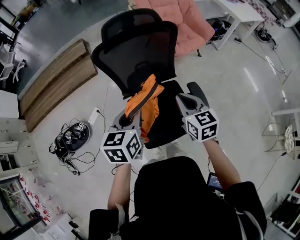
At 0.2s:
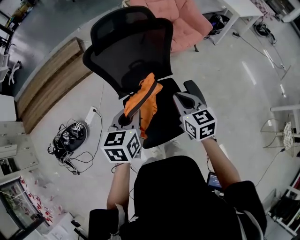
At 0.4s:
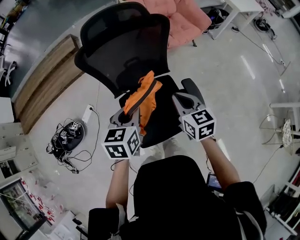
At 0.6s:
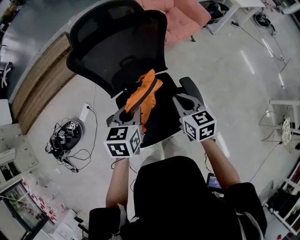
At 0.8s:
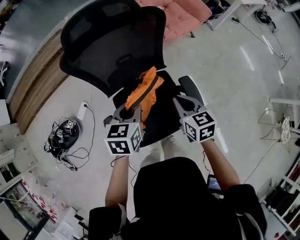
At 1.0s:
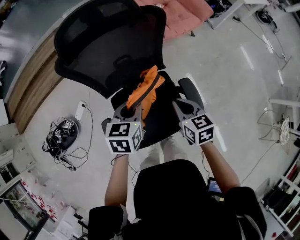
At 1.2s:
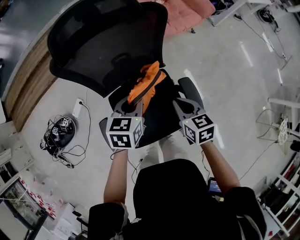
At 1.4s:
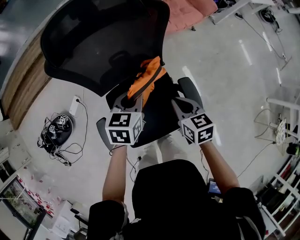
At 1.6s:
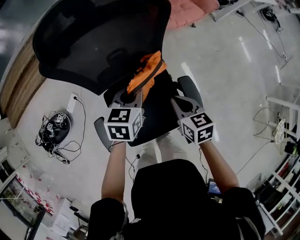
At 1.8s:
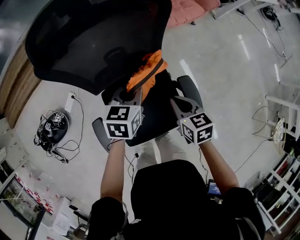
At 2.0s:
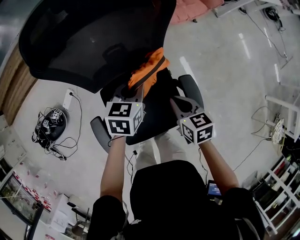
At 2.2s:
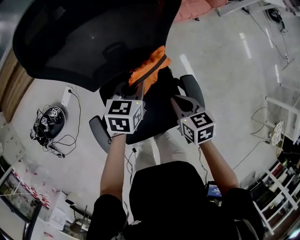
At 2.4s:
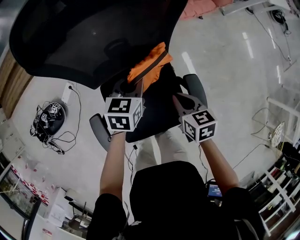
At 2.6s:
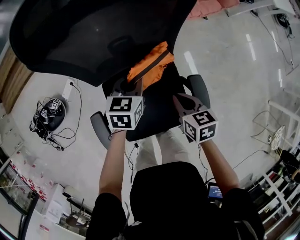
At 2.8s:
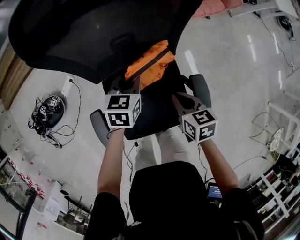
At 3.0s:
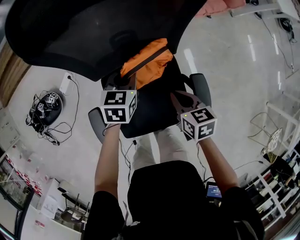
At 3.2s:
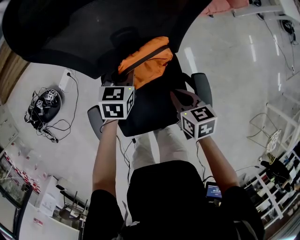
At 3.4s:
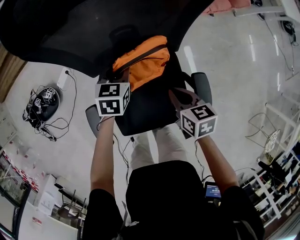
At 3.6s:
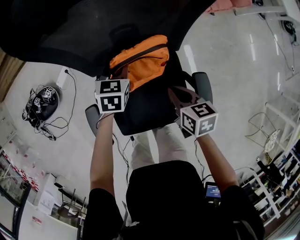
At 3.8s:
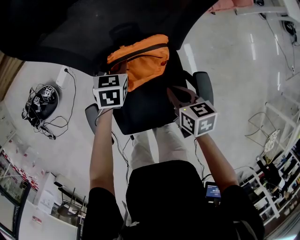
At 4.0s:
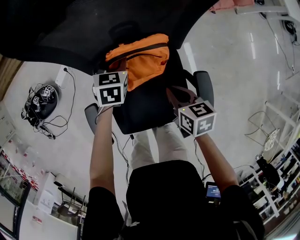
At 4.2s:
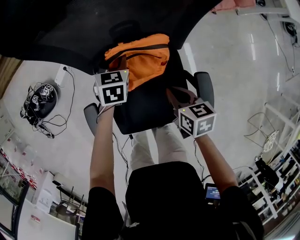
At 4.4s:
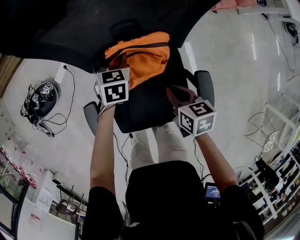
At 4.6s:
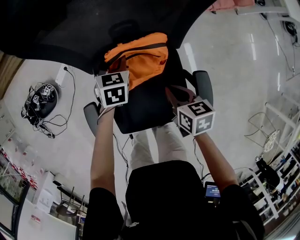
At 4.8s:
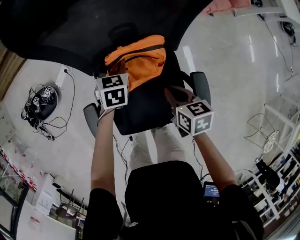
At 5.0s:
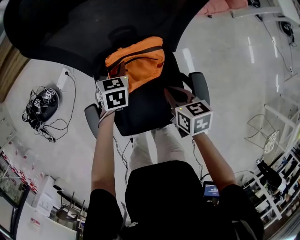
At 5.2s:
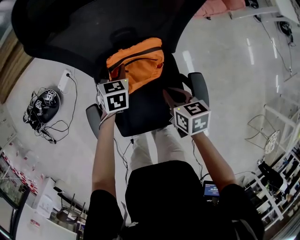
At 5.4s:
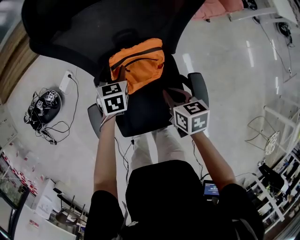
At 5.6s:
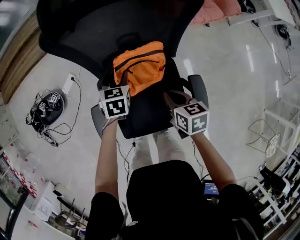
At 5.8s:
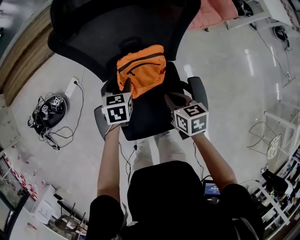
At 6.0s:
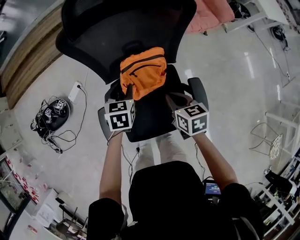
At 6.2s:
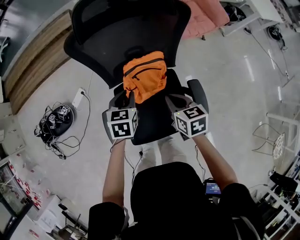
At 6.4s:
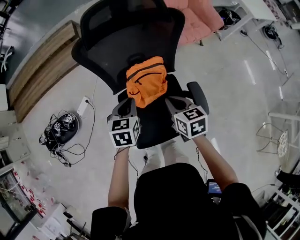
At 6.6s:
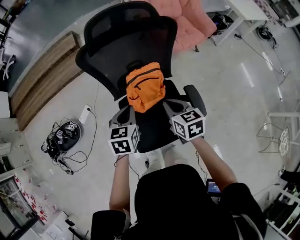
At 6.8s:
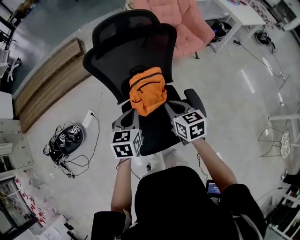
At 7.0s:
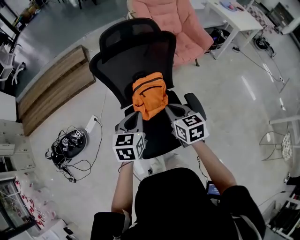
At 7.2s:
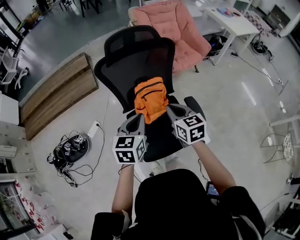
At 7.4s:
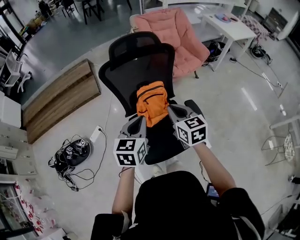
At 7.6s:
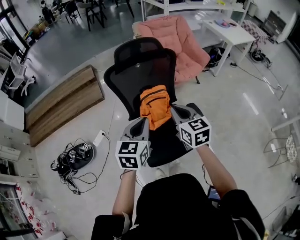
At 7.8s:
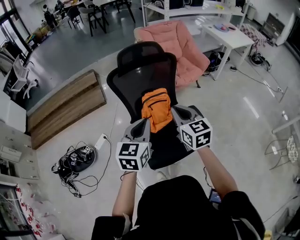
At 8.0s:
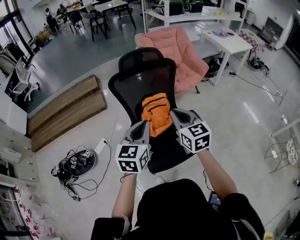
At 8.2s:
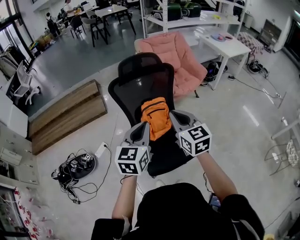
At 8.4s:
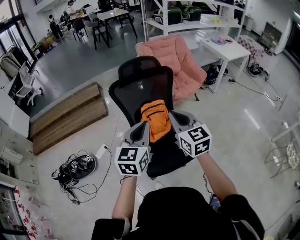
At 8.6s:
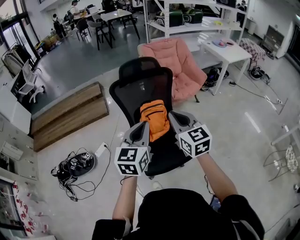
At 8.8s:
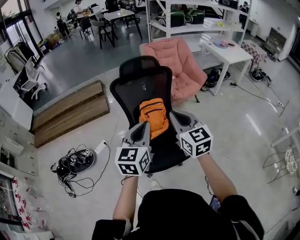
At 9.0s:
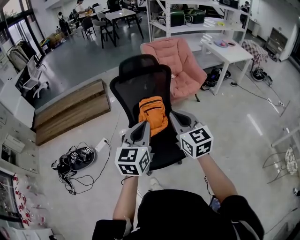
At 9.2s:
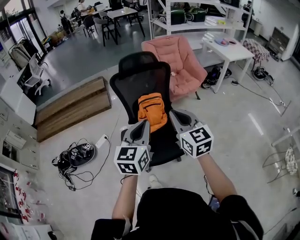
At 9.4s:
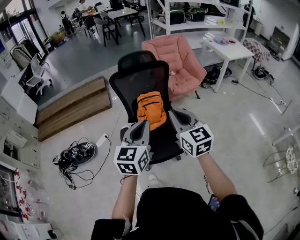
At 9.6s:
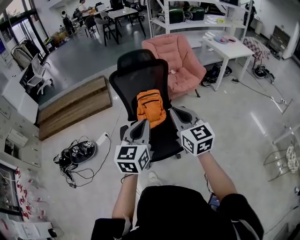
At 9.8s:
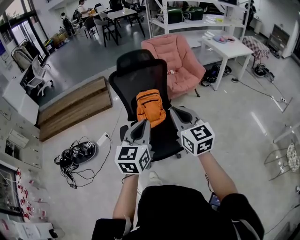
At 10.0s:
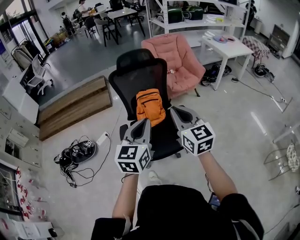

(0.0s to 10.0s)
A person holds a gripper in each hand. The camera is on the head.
0.0s - 1.4s: The left gripper shifts some 30 cm forward, downward and to the right. The right gripper heads downward, forward and to the right, covering about 20 cm, and rotates about 20 degrees.
1.4s - 2.8s: The left gripper shifts some 15 cm downward and forward; the right gripper travels downward by about 10 cm.
2.8s - 4.2s: The left gripper is displaced downward, to the left and forward by roughly 15 cm, and opens its fingers, while the right gripper shifts by approximately 5 cm.
4.2s - 5.8s: The left gripper goes some 10 cm upward and backward. The right gripper travels upward by about 5 cm.
5.8s - 7.2s: Both grippers move upward and backward, approximately 30 cm. The right gripper changes its angle by roughly 30 degrees, while the left gripper rotates roughly 30 degrees, and closes.
7.2s - 8.6s: Both grippers travel together upward and backward, some 20 cm. The right gripper changes its angle by approximately 20 degrees.
8.6s - 10.0s: The grippers both shift backward and to the right by approximately 15 cm.

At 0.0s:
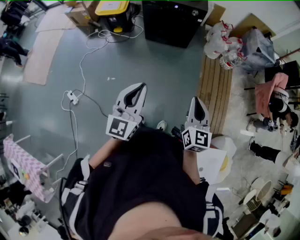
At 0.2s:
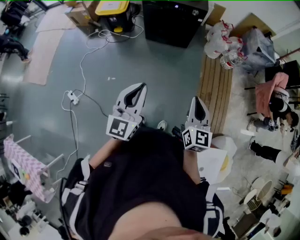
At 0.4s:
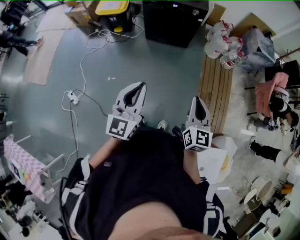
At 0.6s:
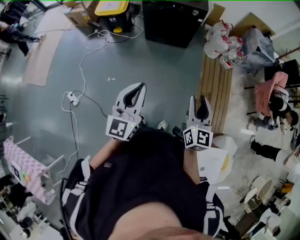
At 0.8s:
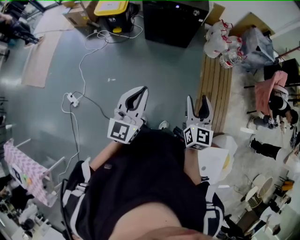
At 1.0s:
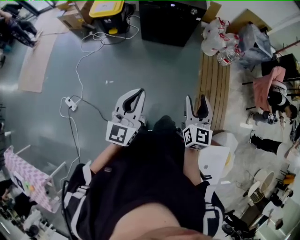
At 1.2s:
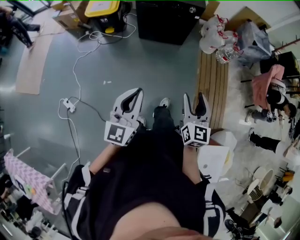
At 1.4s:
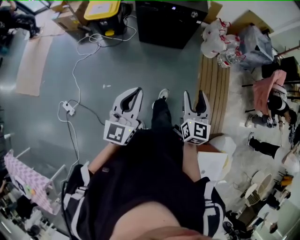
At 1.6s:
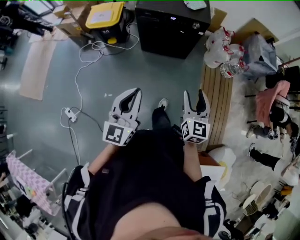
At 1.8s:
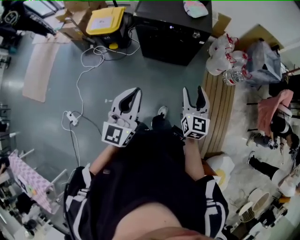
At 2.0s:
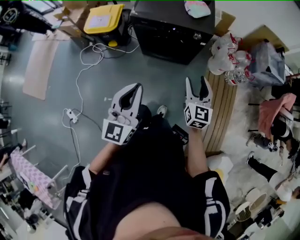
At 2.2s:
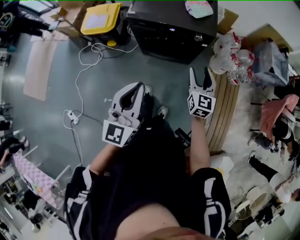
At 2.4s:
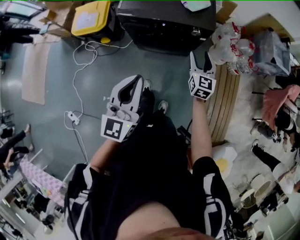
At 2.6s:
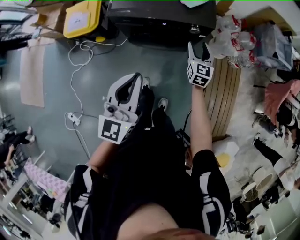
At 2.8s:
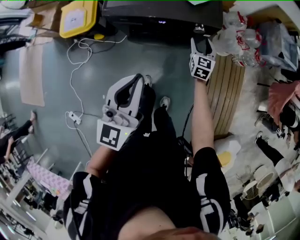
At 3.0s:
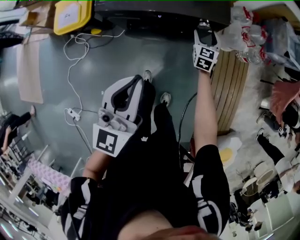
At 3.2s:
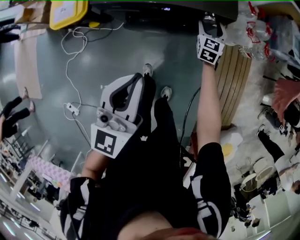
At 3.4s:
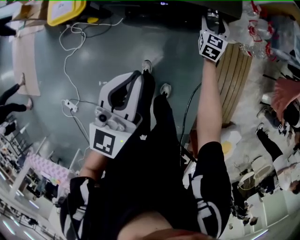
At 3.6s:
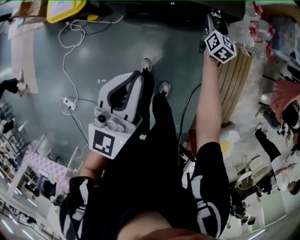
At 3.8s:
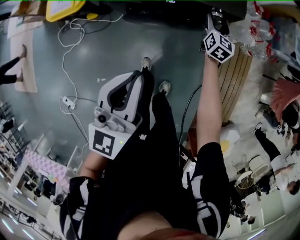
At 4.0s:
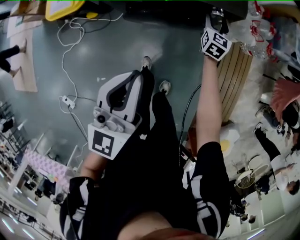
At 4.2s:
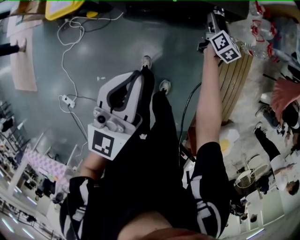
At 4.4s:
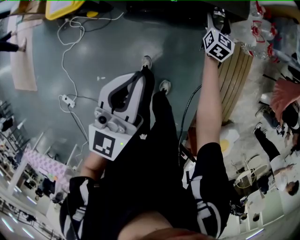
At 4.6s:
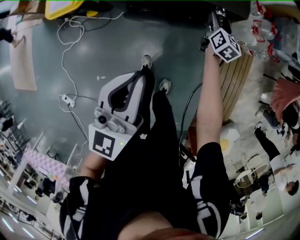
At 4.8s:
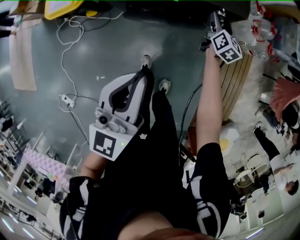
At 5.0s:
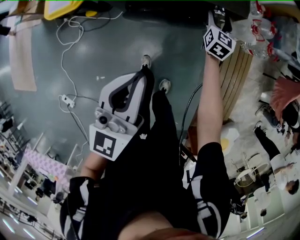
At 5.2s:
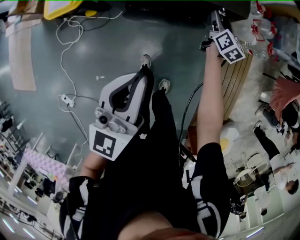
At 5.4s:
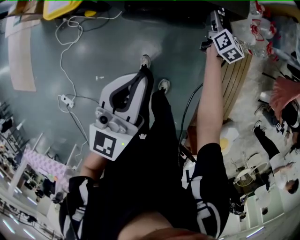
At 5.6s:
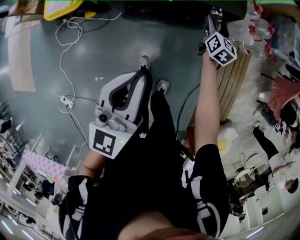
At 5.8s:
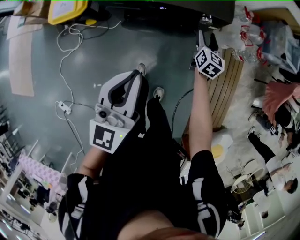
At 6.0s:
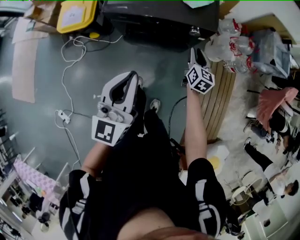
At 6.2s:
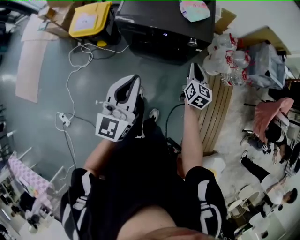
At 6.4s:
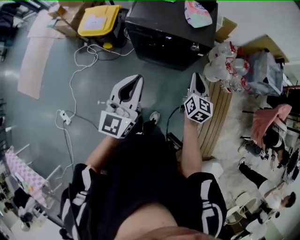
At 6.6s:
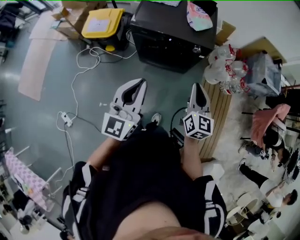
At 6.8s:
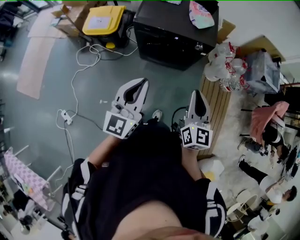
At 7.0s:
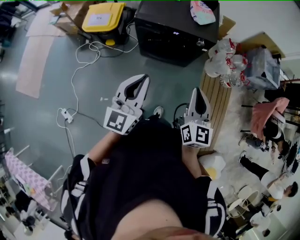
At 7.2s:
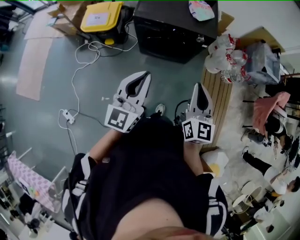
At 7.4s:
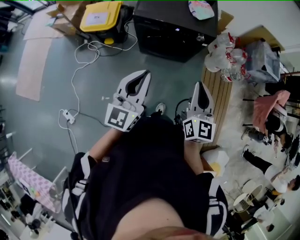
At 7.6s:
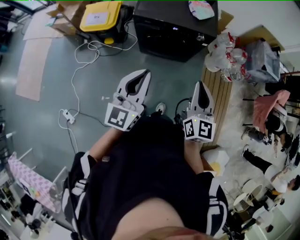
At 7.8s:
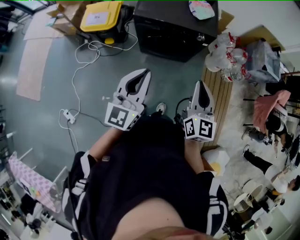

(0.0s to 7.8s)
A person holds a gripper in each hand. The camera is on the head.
0.0s - 1.6s: The two grippers go approximately 25 cm forward. The right gripper opens up.
1.6s - 3.2s: The pair of grippers is taken forward, roughly 60 cm. The right gripper moves downward, roughly 40 cm.
3.2s - 4.6s: The right gripper changes its angle by some 30 degrees.
4.6s - 6.2s: The left gripper goes roughly 20 cm upward and backward, while the right gripper shifts some 35 cm upward and backward, and closes its fingers.
6.2s - 7.8s: The left gripper is displaced backward, to the left and upward by approximately 15 cm, while the right gripper heads backward, upward and to the left, covering roughly 35 cm.

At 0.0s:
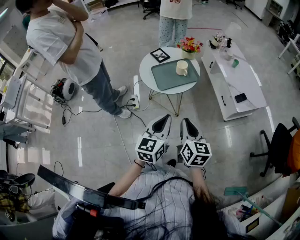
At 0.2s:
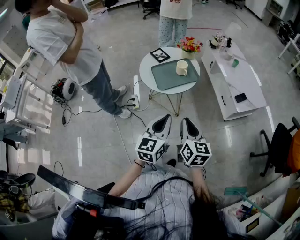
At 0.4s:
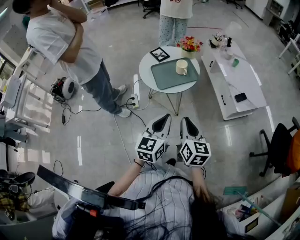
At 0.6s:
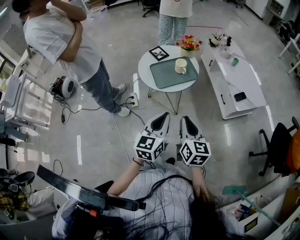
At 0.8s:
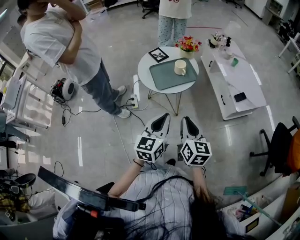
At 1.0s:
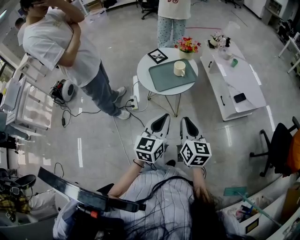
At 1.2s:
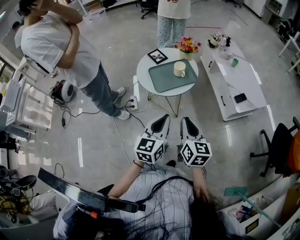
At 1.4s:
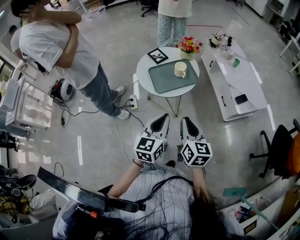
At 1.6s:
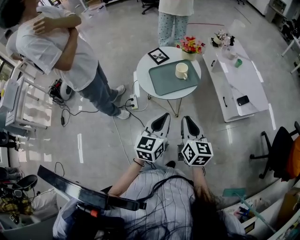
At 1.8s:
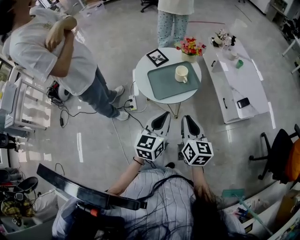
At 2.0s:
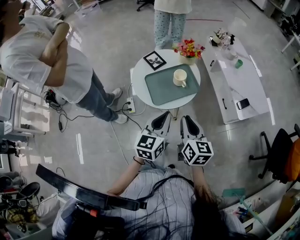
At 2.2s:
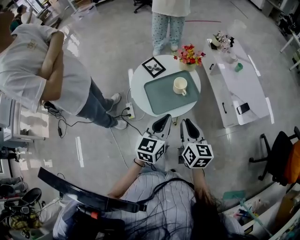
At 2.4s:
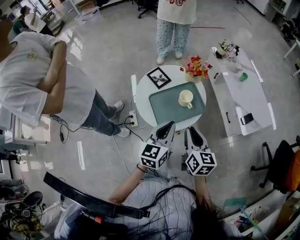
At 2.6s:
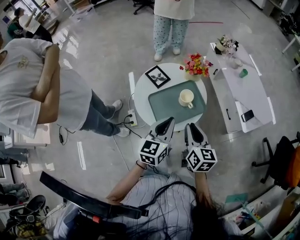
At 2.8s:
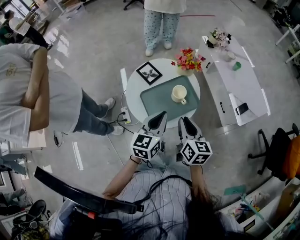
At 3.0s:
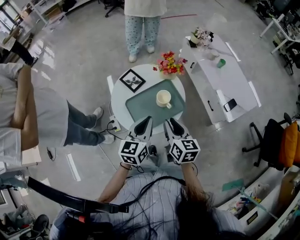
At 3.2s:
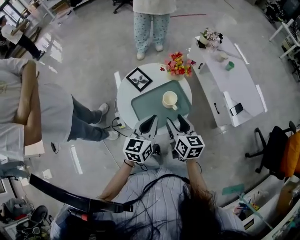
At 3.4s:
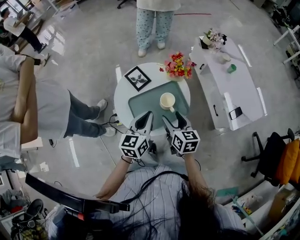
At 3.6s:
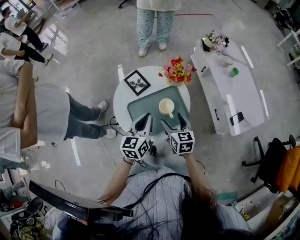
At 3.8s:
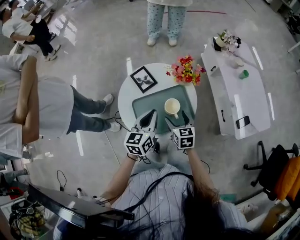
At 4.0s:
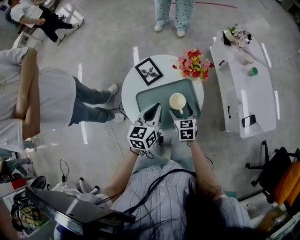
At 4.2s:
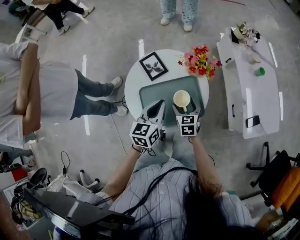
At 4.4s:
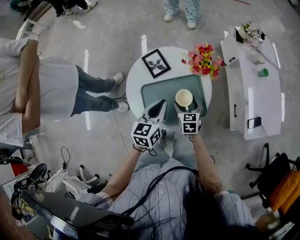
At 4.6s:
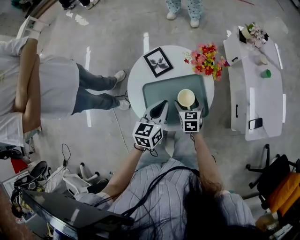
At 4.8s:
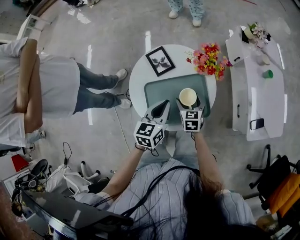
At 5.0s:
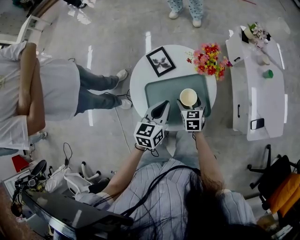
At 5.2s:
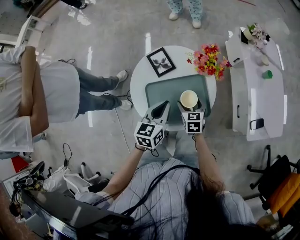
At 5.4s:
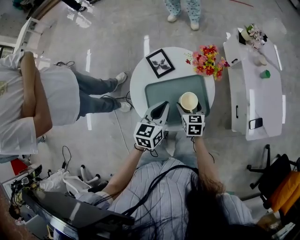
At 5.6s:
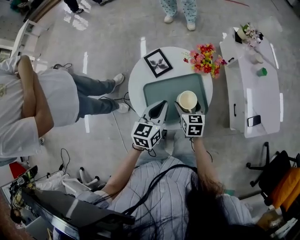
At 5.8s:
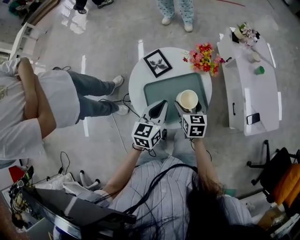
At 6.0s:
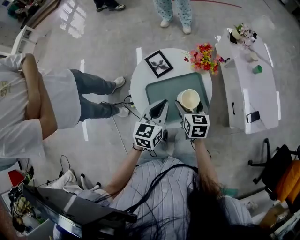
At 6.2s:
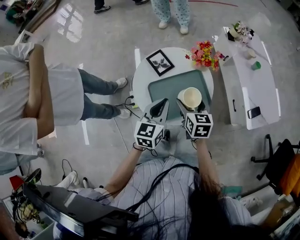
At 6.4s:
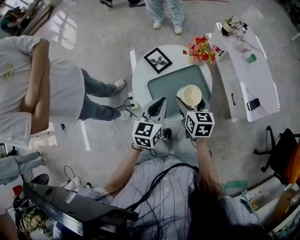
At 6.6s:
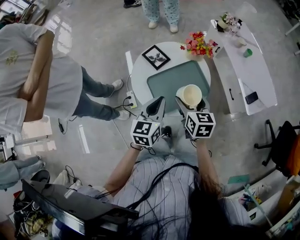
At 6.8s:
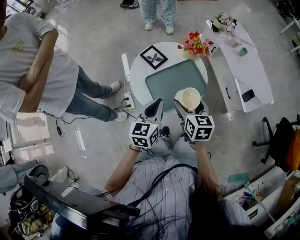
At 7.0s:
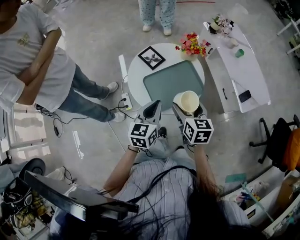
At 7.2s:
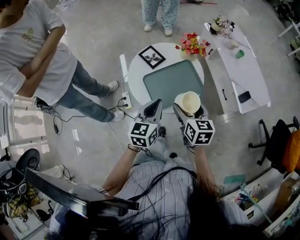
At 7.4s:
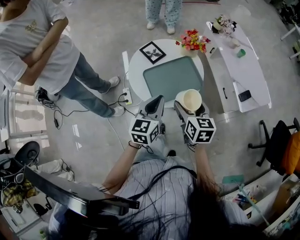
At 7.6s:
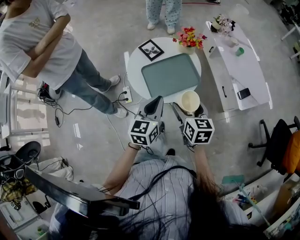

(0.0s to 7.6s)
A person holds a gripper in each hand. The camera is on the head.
0.0s - 1.6s: The grippers both shift forward by roughly 10 cm.
1.6s - 3.0s: The grippers both shift forward by about 25 cm.
3.0s - 4.6s: The right gripper shifts roughly 25 cm downward and forward, swivels some 30 degrees, and opens up. Meanwhile the left gripper is displaced forward and downward by roughly 15 cm.
4.6s - 6.0s: The right gripper moves upward, approximately 10 cm. The left gripper shifts approximately 5 cm upward.
6.0s - 7.6s: The right gripper is displaced backward and upward by about 20 cm; the left gripper travels backward by about 15 cm.
